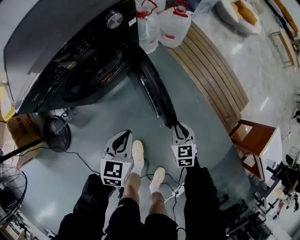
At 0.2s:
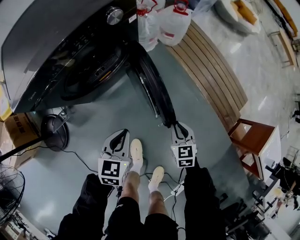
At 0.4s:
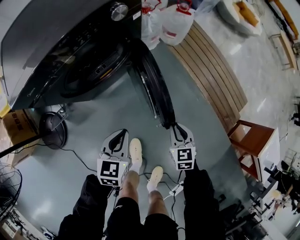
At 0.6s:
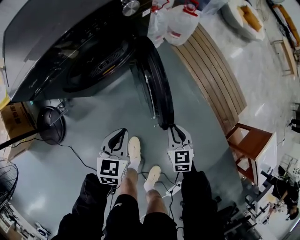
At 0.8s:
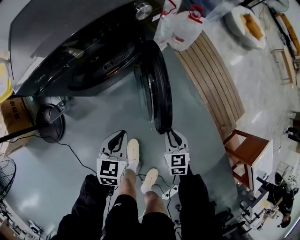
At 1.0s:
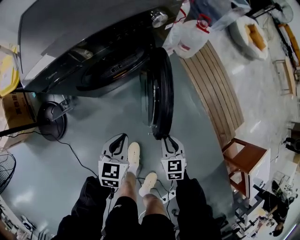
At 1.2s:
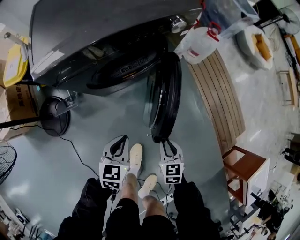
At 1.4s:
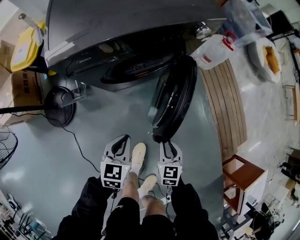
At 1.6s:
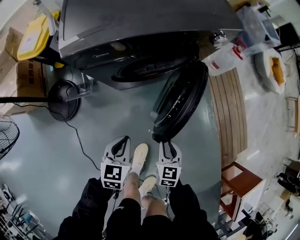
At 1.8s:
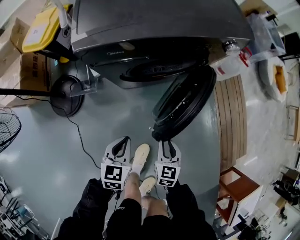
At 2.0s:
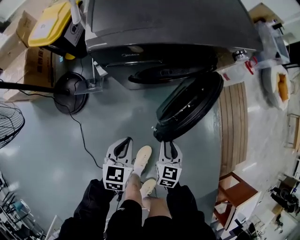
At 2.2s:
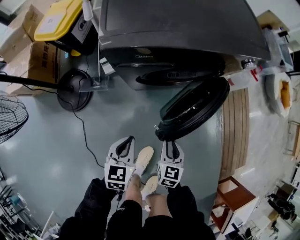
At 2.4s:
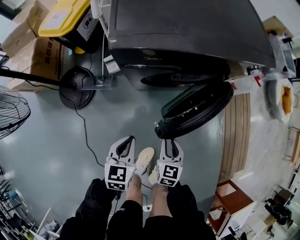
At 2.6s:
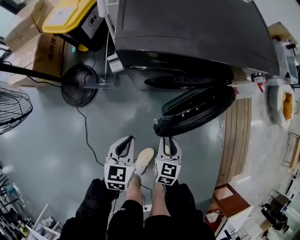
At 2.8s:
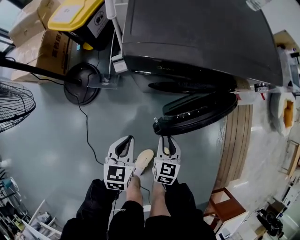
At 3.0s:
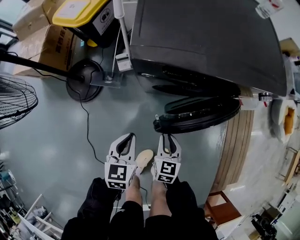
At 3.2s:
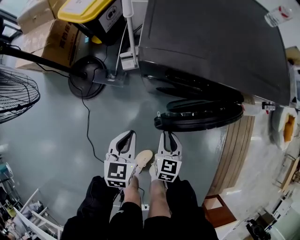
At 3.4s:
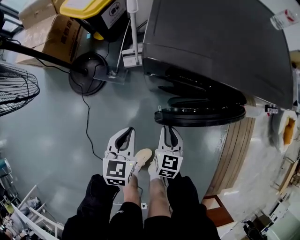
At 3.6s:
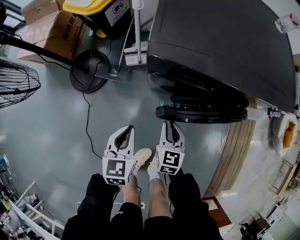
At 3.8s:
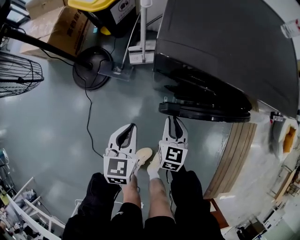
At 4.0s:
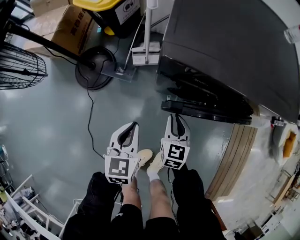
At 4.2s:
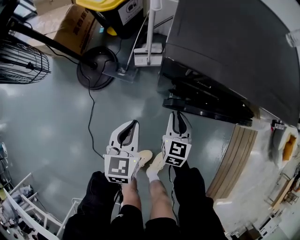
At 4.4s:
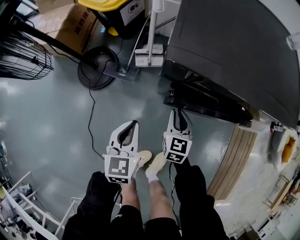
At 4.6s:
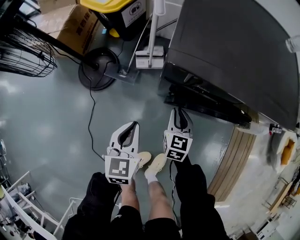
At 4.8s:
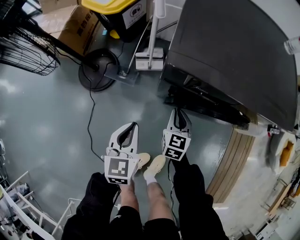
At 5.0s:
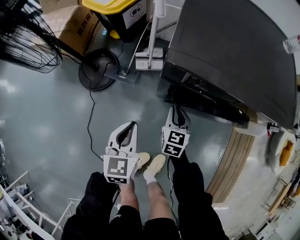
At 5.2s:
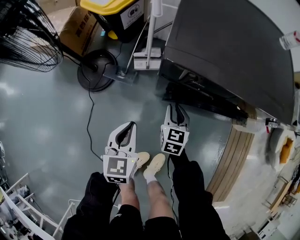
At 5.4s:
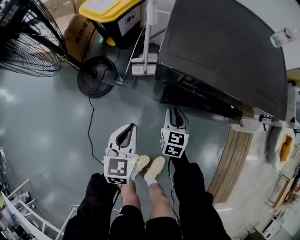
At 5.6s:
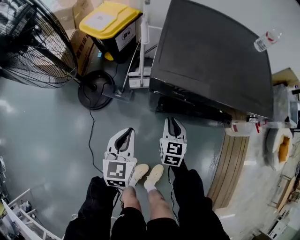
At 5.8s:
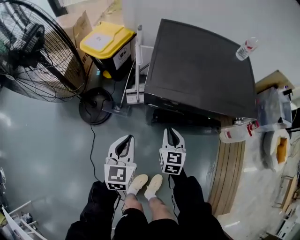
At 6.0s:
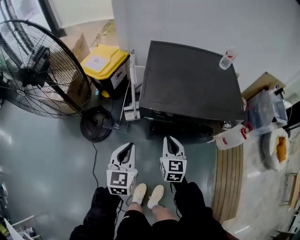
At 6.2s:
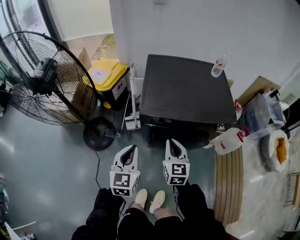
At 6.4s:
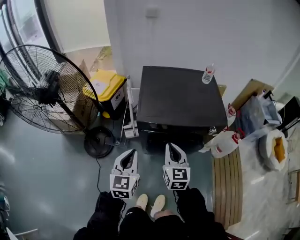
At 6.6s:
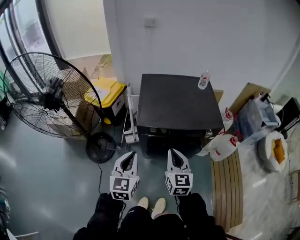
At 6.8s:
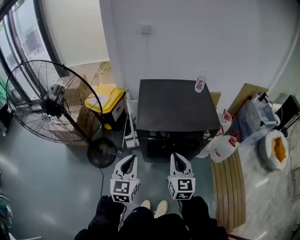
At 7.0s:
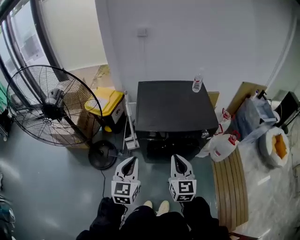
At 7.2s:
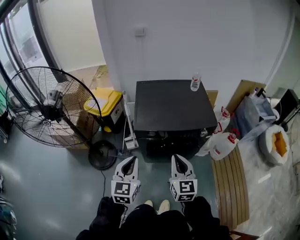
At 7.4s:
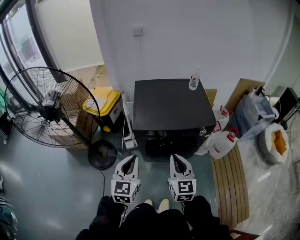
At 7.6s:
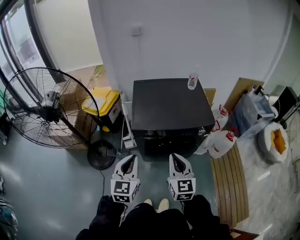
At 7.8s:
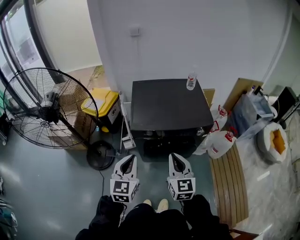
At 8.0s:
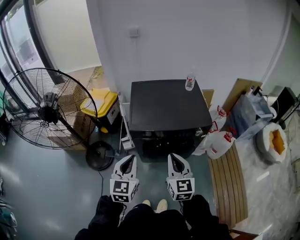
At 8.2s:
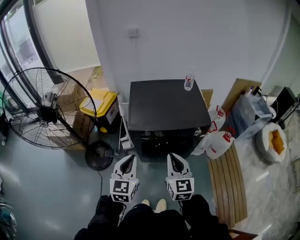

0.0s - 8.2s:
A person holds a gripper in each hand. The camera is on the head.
0.0s - 1.6s: Both grippers travel together to the left, approximately 25 cm. The left gripper changes its angle by roughly 30 degrees.
1.6s - 3.2s: The two grippers go some 20 cm to the left and forward. The left gripper rotates roughly 30 degrees.
3.2s - 5.0s: The right gripper goes approximately 15 cm forward.
5.0s - 6.6s: The right gripper is displaced upward and backward by approximately 50 cm, and rotates roughly 20 degrees. The left gripper goes roughly 40 cm upward, and turns by roughly 20 degrees.
6.6s - 8.2s: The right gripper moves upward and backward, roughly 10 cm. Meanwhile the left gripper moves roughly 5 cm.

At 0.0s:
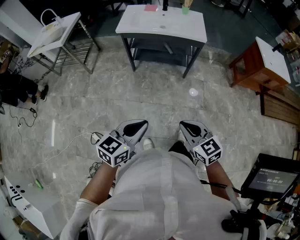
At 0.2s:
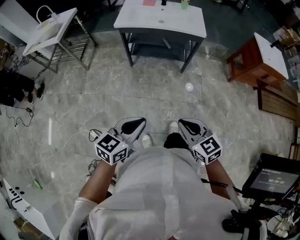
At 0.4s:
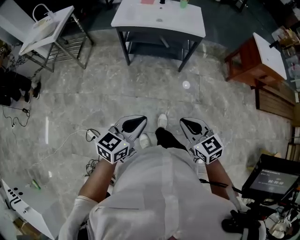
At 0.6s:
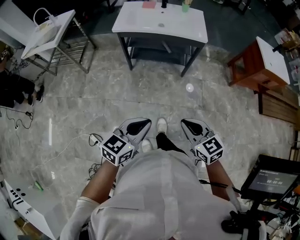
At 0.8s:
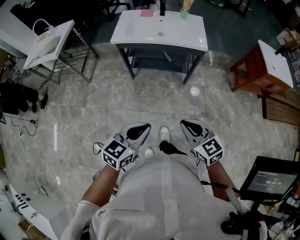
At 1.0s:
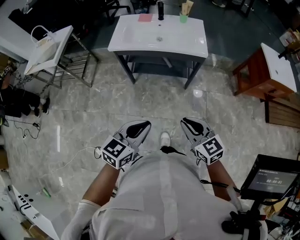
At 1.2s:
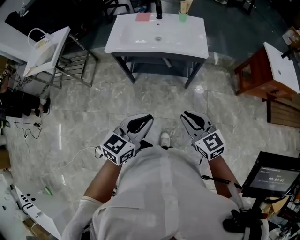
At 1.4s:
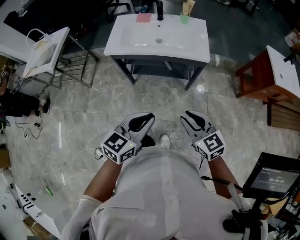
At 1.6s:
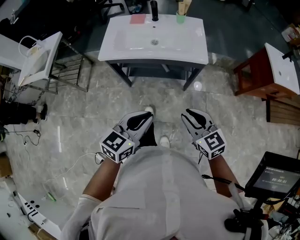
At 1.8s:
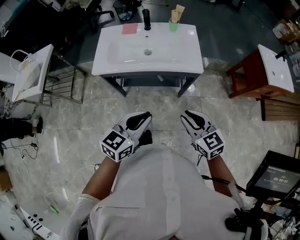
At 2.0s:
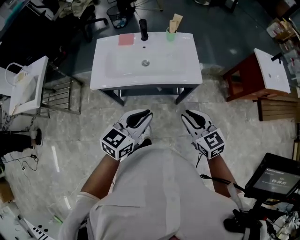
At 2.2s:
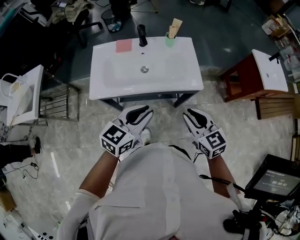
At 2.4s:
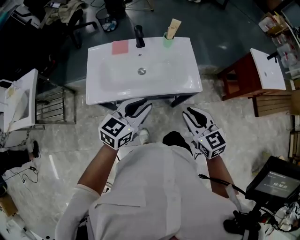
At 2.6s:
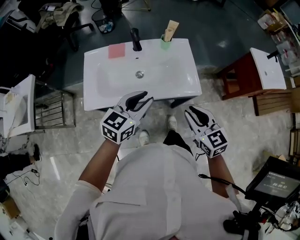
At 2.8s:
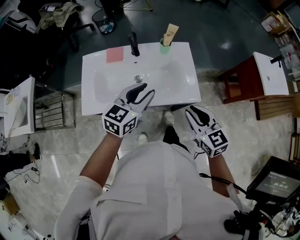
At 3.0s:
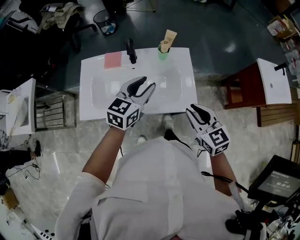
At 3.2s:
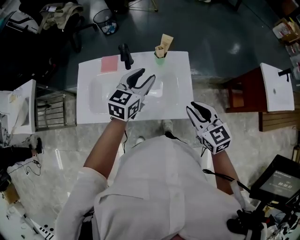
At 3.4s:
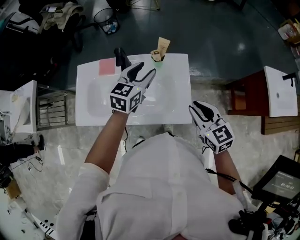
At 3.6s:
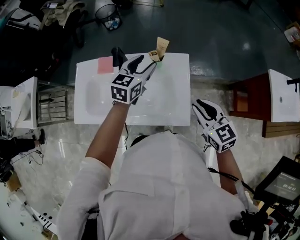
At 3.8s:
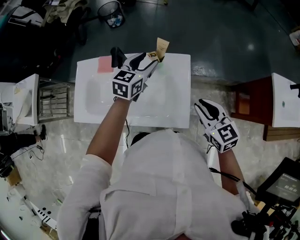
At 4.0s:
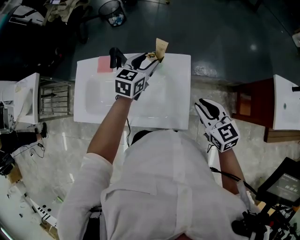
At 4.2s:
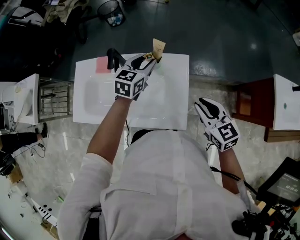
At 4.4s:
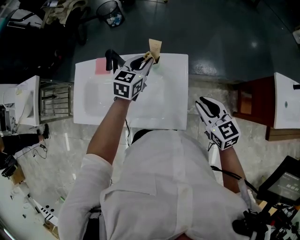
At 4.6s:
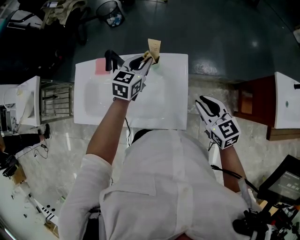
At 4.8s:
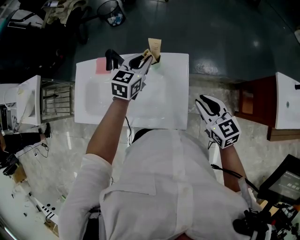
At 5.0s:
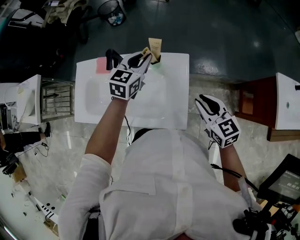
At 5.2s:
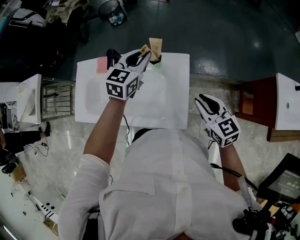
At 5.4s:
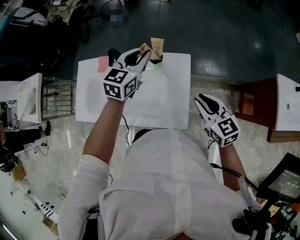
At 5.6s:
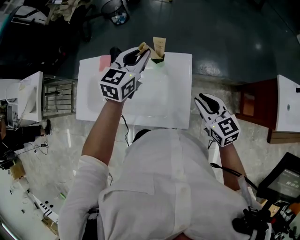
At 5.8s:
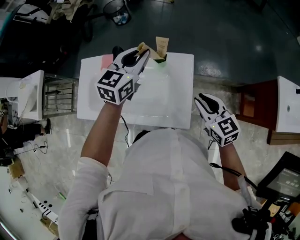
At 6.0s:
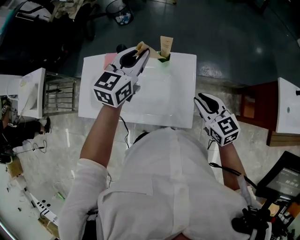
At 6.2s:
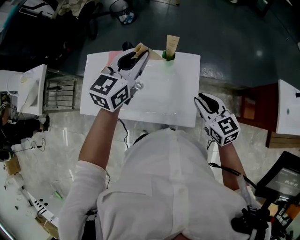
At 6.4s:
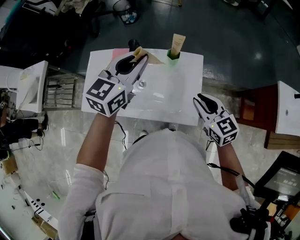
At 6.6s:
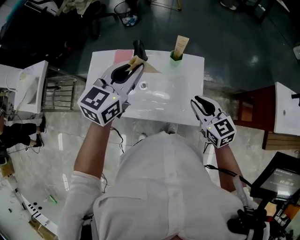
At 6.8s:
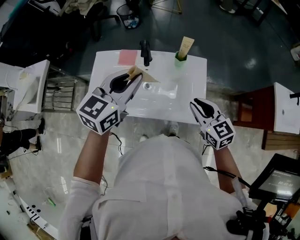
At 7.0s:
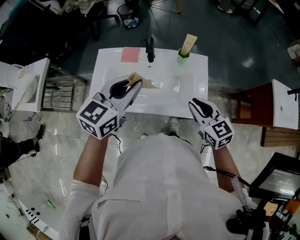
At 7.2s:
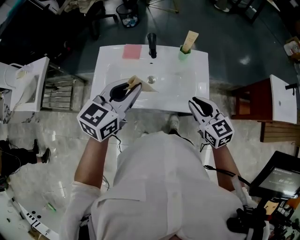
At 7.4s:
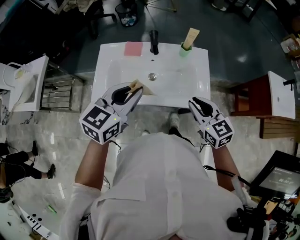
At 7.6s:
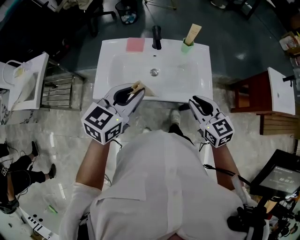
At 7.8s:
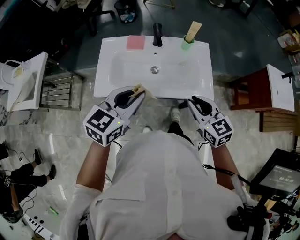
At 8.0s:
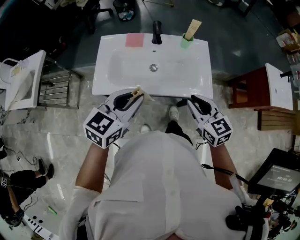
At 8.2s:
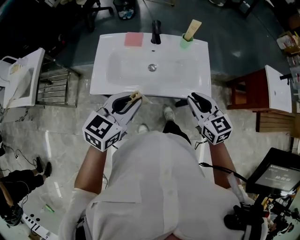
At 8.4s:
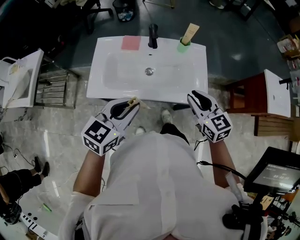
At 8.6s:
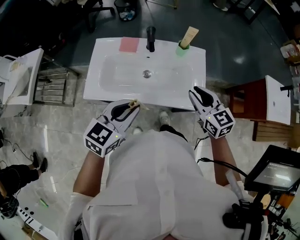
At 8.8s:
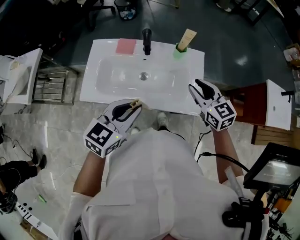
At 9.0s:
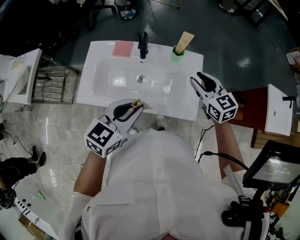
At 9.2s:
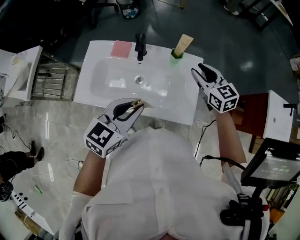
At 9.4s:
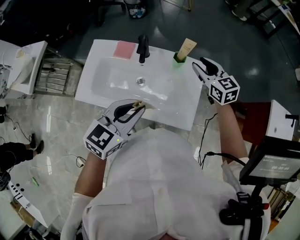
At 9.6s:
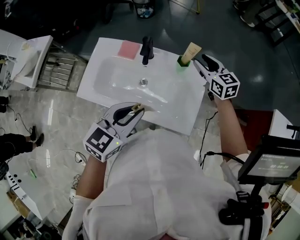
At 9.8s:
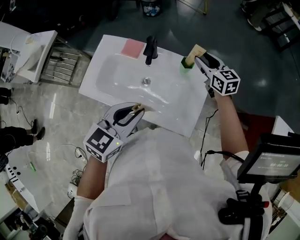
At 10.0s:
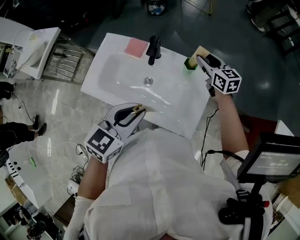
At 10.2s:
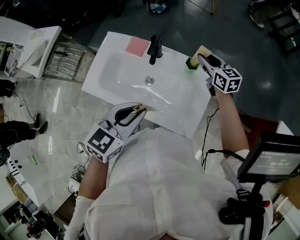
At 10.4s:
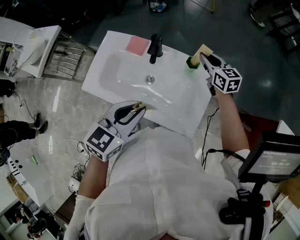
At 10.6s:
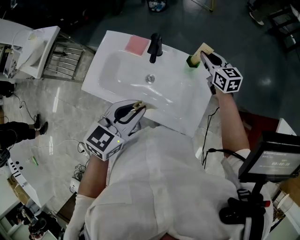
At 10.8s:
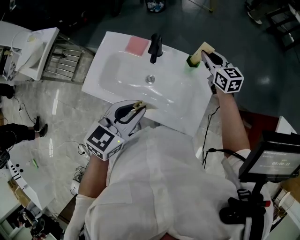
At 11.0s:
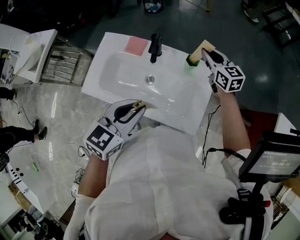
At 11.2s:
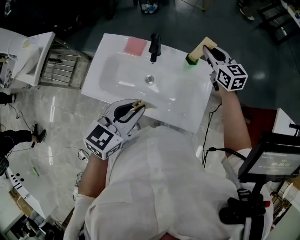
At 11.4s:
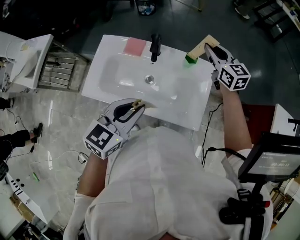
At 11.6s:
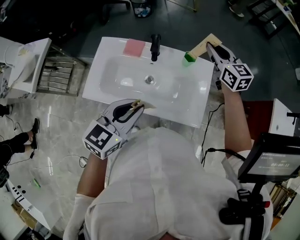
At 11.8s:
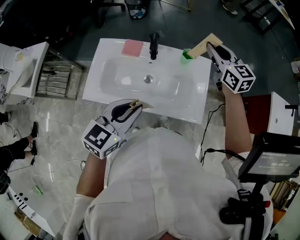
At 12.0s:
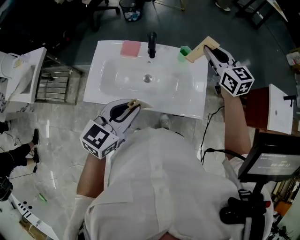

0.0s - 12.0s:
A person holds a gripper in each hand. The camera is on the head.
0.0s - 1.6s: Both grippers move forward, some 35 cm.
1.6s - 3.0s: Both grippers travel together forward, some 40 cm. The left gripper opens its fingers.
3.0s - 4.4s: The two grippers go about 20 cm forward and to the right.
4.4s - 6.0s: The left gripper moves upward, about 15 cm.
6.0s - 7.6s: The right gripper heads to the left and backward, covering some 25 cm. The left gripper shifts about 30 cm backward and to the left.
7.6s - 9.0s: The left gripper travels to the right by some 10 cm. The right gripper shifts about 20 cm forward and to the right.
9.0s - 10.4s: The right gripper is displaced forward by some 20 cm.
10.4s - 12.0s: The right gripper heads upward and backward, covering some 20 cm. Meanwhile the left gripper heads to the left and backward, covering about 10 cm.

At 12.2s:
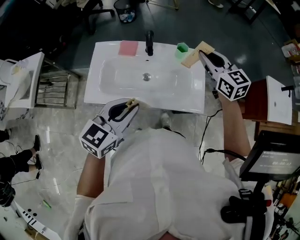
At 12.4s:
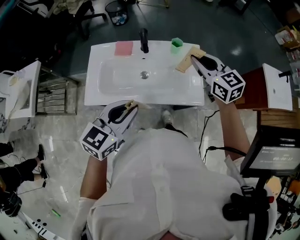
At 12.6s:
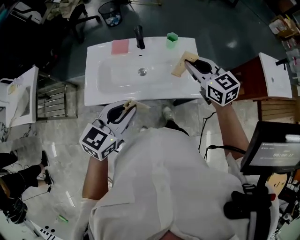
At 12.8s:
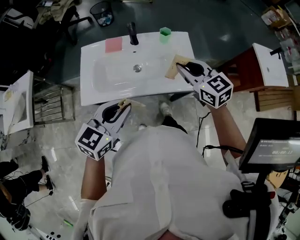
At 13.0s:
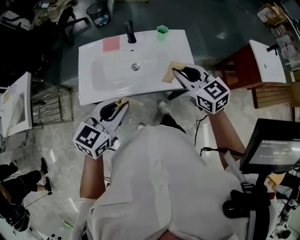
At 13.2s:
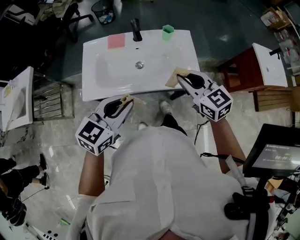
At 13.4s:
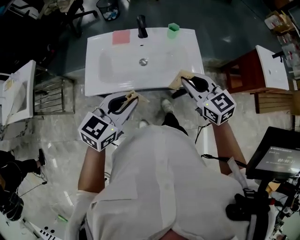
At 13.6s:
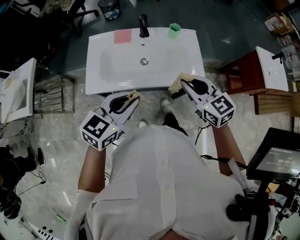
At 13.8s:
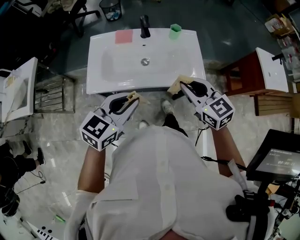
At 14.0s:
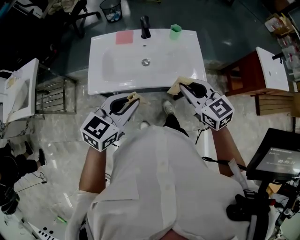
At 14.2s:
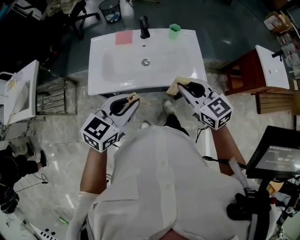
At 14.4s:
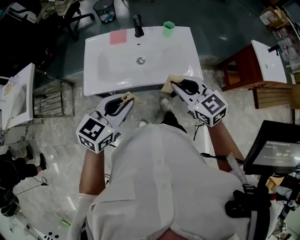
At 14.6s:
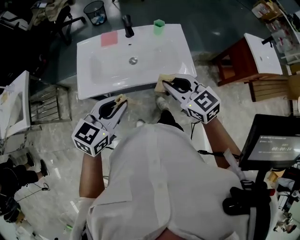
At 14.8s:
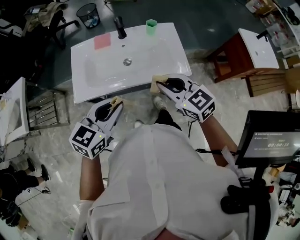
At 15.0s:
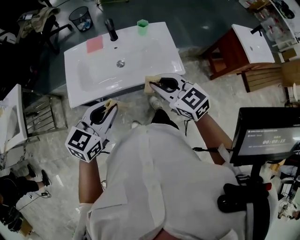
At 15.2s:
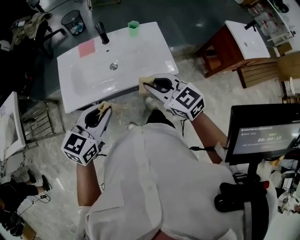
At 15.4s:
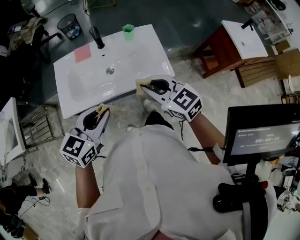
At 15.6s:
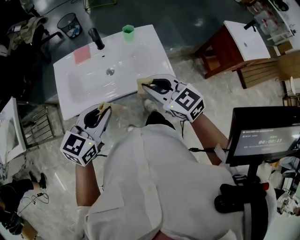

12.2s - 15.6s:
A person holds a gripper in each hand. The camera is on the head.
12.2s - 13.8s: The right gripper shifts some 25 cm backward, while the left gripper heads backward, covering about 10 cm.
13.8s - 15.6s: The left gripper changes place by roughly 5 cm.
